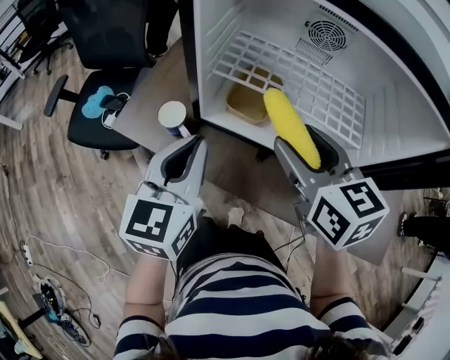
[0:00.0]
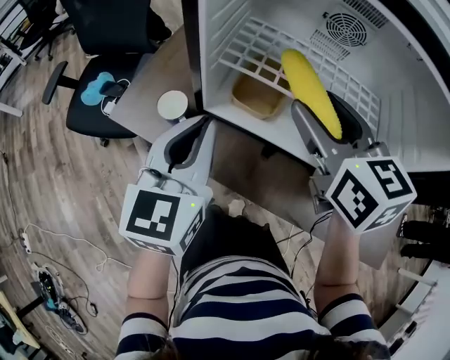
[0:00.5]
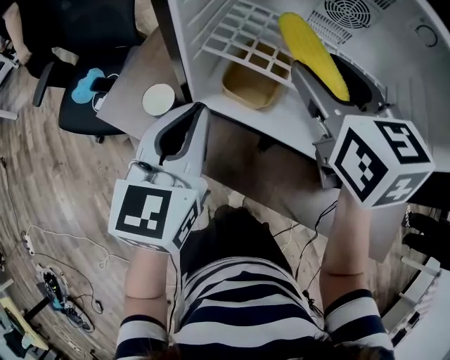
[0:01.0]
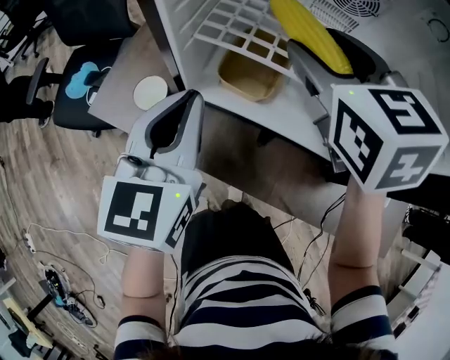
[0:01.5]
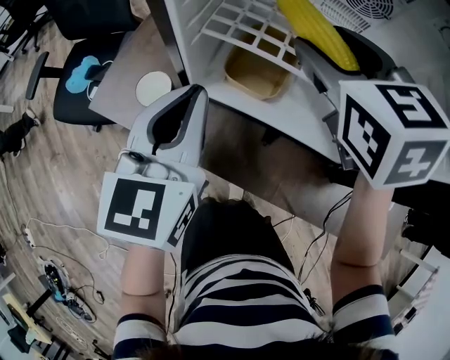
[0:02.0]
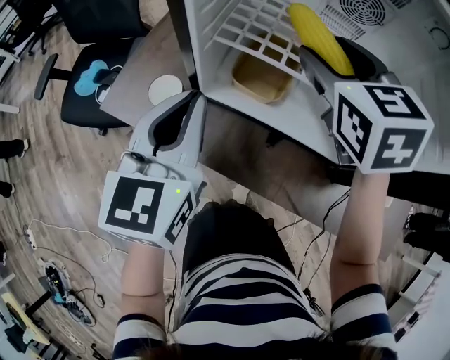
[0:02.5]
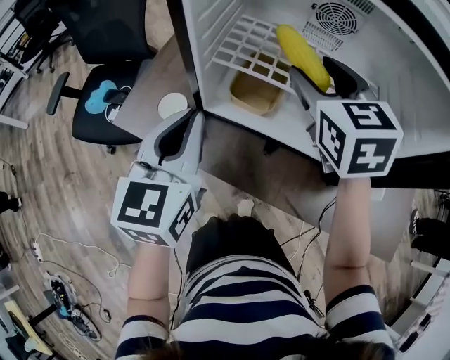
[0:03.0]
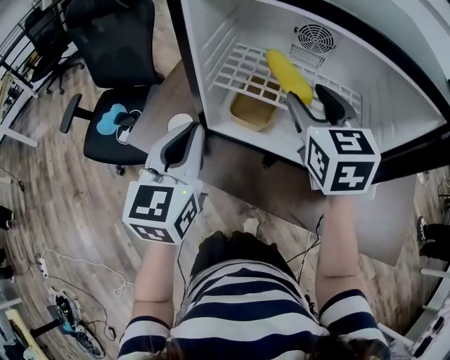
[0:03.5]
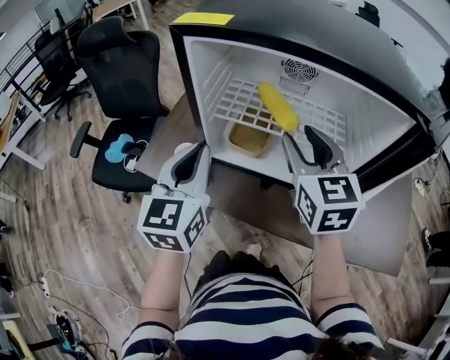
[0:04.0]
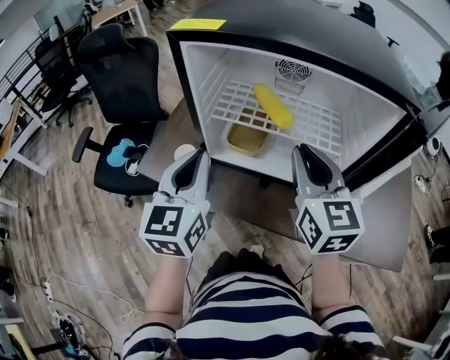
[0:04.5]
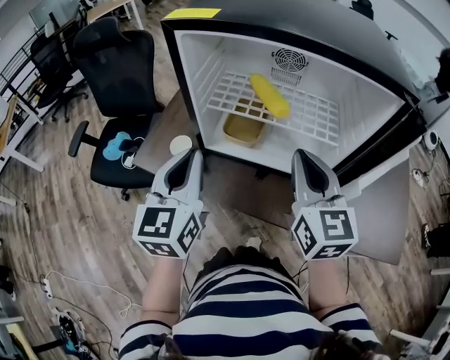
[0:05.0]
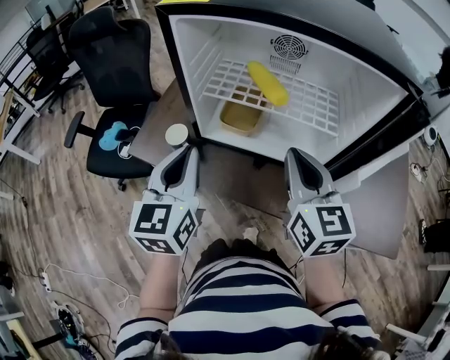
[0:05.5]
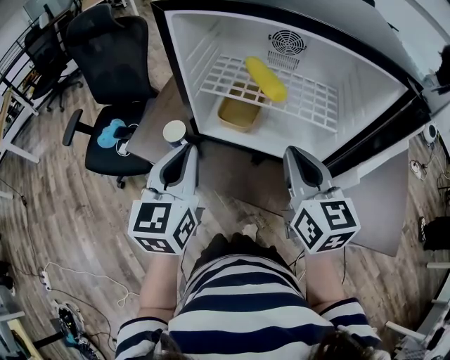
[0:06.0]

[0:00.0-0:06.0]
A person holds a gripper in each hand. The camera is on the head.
0:00.0 to 0:02.0: The left gripper shifts roughly 5 cm forward. The right gripper travels forward by about 15 cm, and turns by some 20 degrees.
0:02.0 to 0:04.0: The left gripper moves upward and backward, some 10 cm. Meanwhile the right gripper moves backward and upward, roughly 15 cm, and turns by approximately 20 degrees.
0:04.0 to 0:06.0: The right gripper moves backward, some 10 cm, and closes up; the left gripper ends up about 5 cm from where it was.

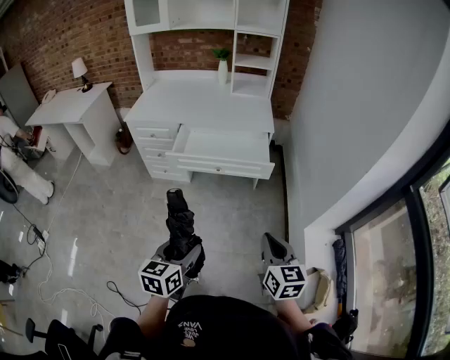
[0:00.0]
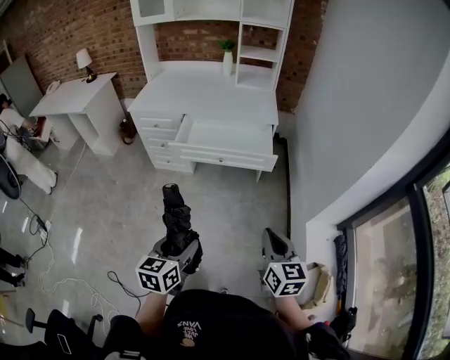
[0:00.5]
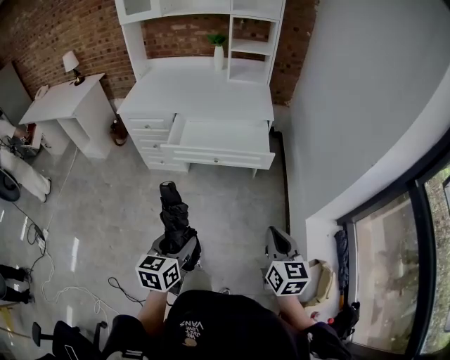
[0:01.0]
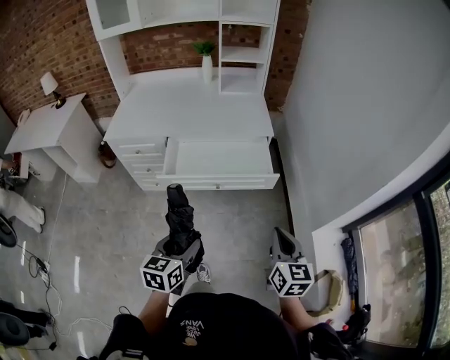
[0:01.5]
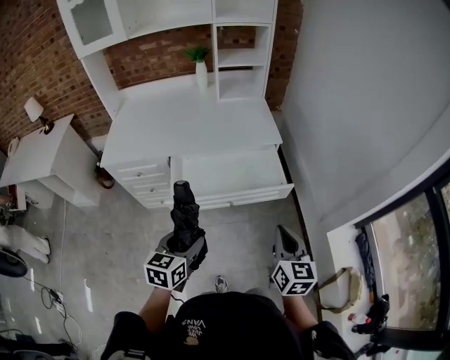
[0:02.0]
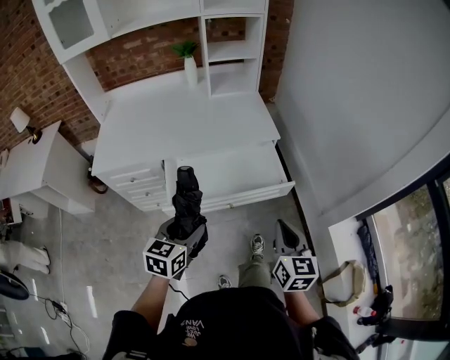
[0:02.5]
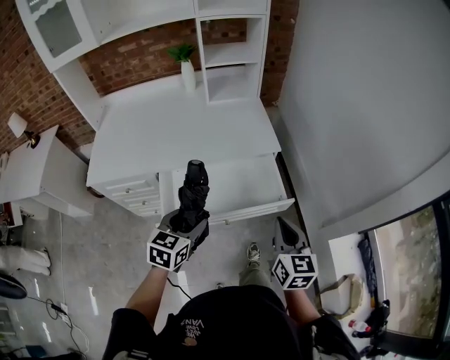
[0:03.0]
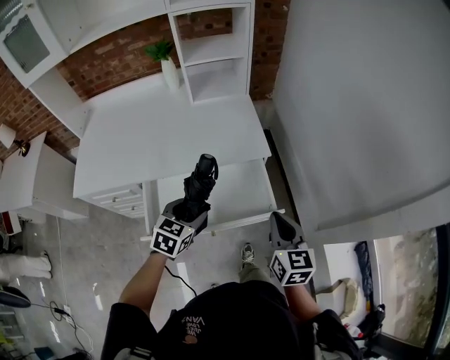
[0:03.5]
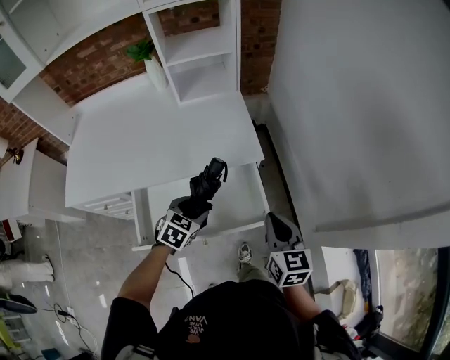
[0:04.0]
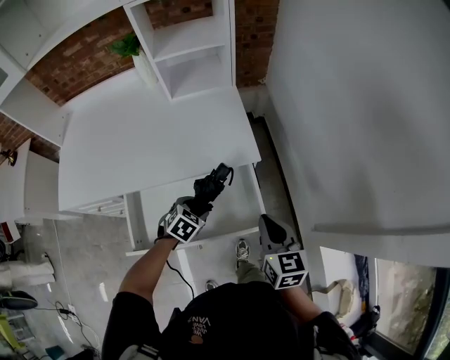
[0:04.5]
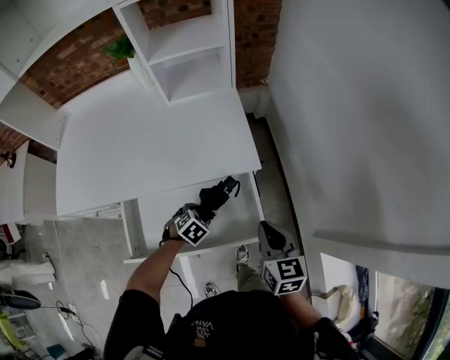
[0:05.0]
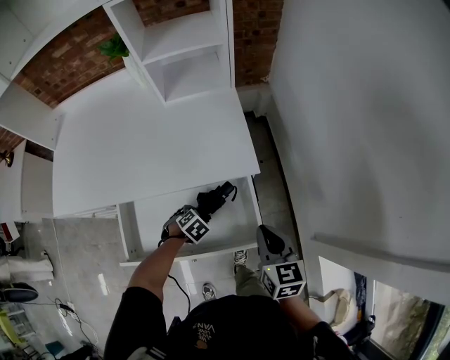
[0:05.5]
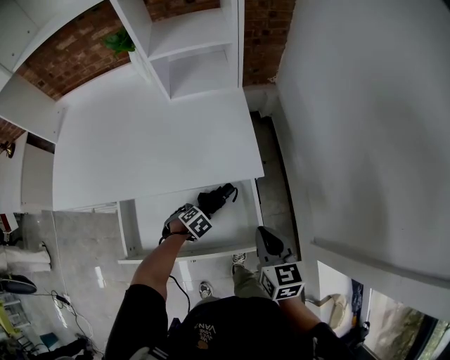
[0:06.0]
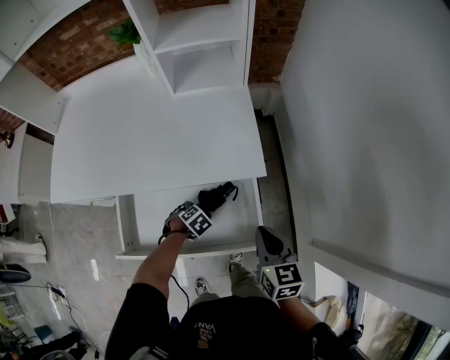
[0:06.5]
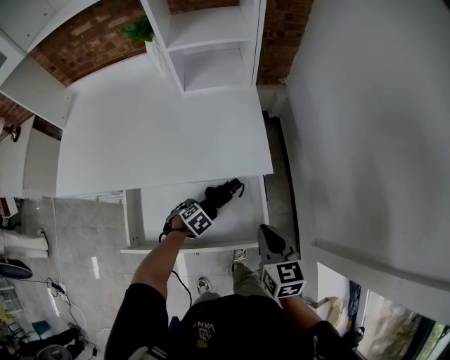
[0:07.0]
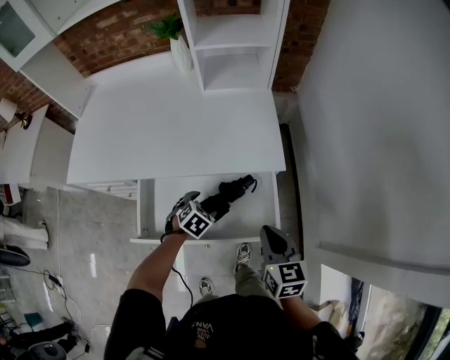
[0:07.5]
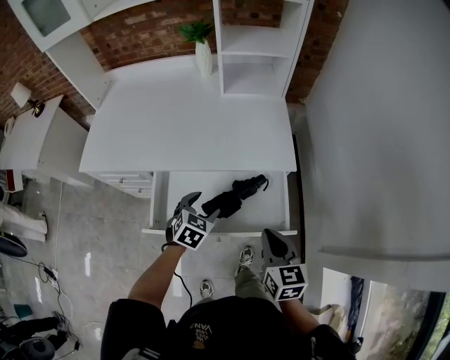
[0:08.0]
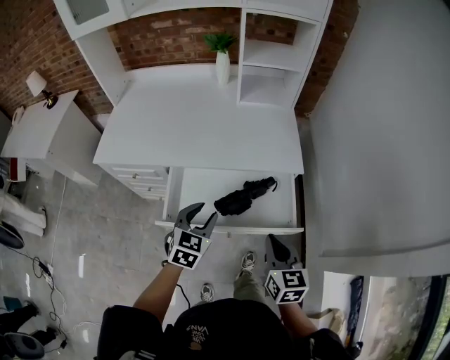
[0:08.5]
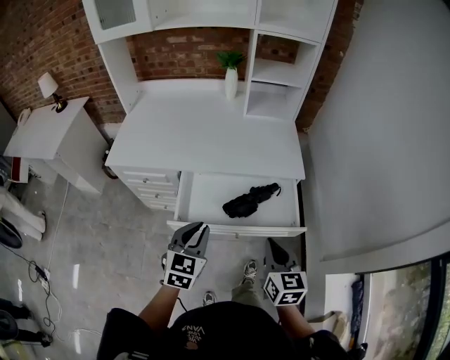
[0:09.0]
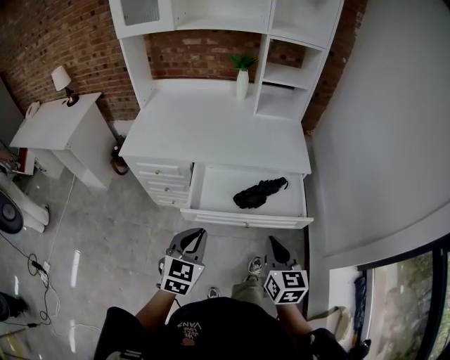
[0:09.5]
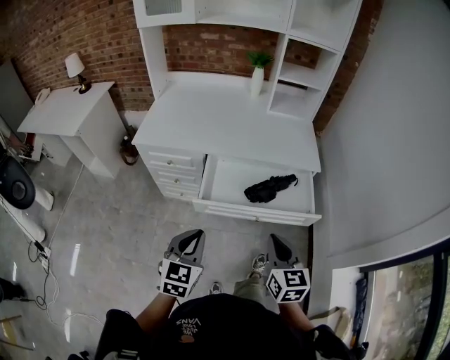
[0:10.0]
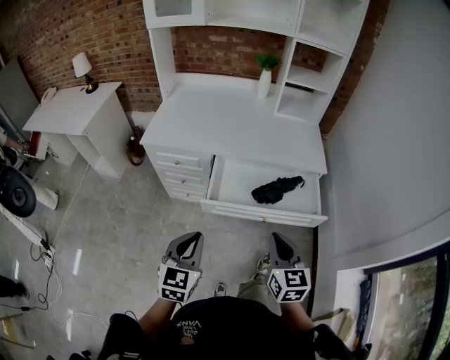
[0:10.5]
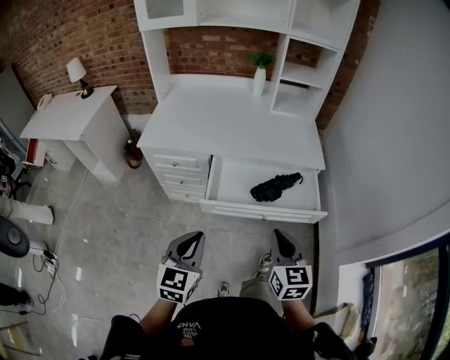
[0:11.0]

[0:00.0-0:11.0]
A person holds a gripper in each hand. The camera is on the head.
0:00.0 to 0:02.0: The grippers both shift forward and to the left by some 30 cm.
0:02.0 to 0:03.5: Both grippers travel together forward, about 25 cm. The left gripper changes its angle by approximately 20 degrees.
0:03.5 to 0:05.5: The left gripper goes approximately 25 cm downward, and angles its fingers downward, by approximately 40 degrees, while the right gripper shifts by roughly 15 cm.
0:05.5 to 0:07.5: The right gripper ends up roughly 10 cm from where it was. The left gripper moves upward, some 5 cm.
0:07.5 to 0:09.0: The left gripper travels upward, backward and to the left by roughly 35 cm, tips its fingers upward by roughly 40 degrees, and closes. The right gripper shifts some 20 cm backward, to the left and upward.
0:09.0 to 0:11.0: The right gripper travels to the left and backward by some 15 cm. Meanwhile the left gripper travels backward and to the left by approximately 20 cm.

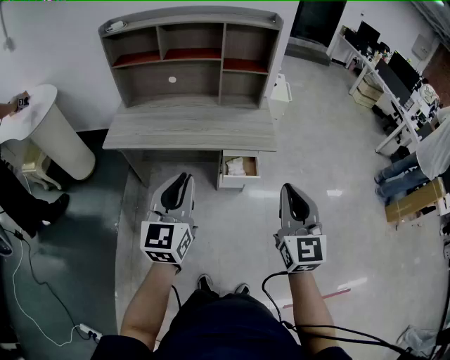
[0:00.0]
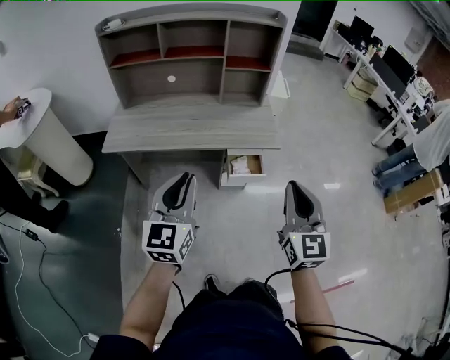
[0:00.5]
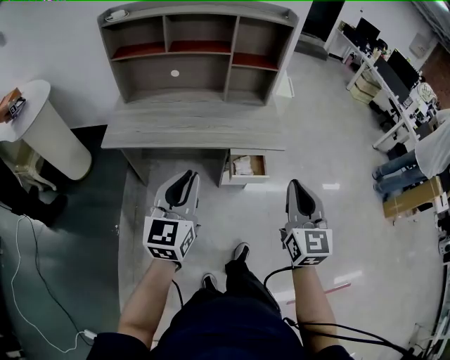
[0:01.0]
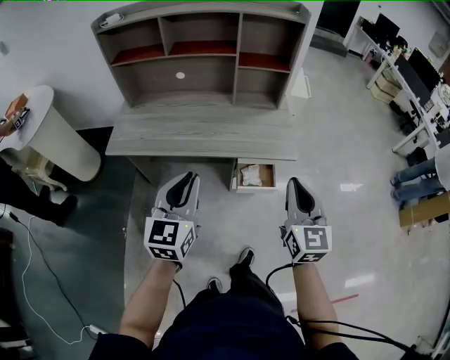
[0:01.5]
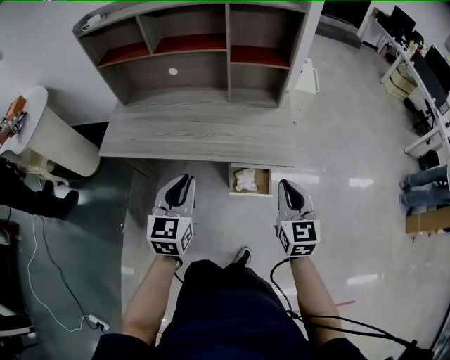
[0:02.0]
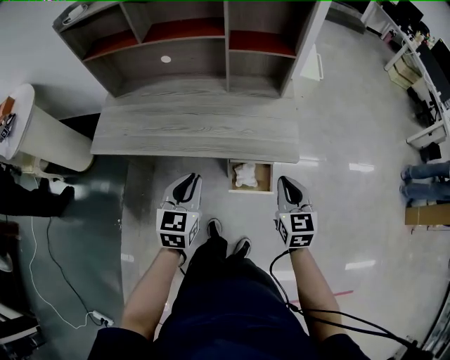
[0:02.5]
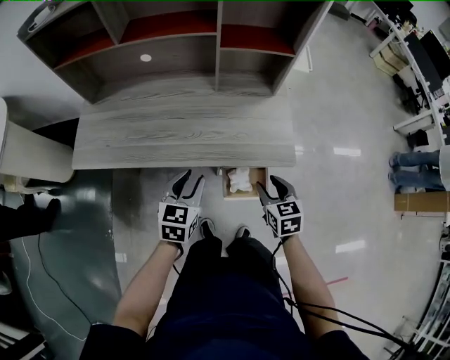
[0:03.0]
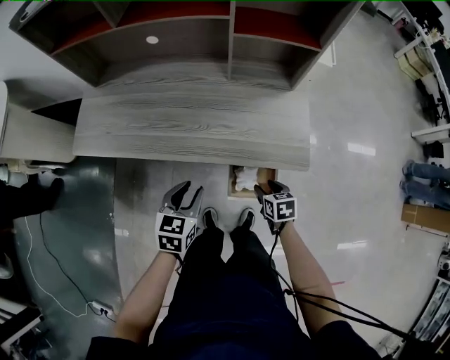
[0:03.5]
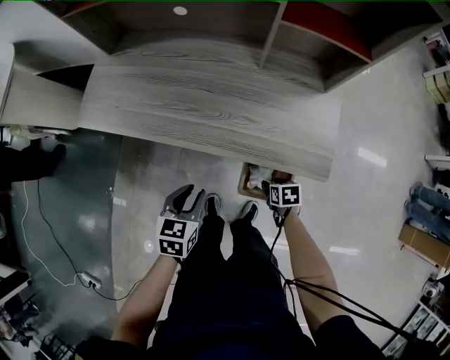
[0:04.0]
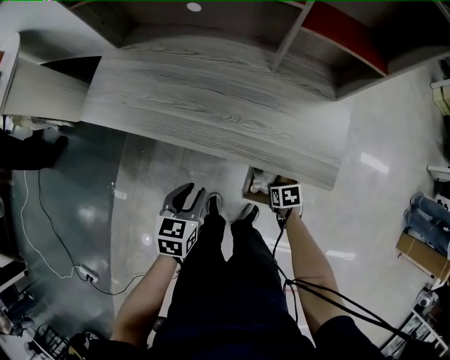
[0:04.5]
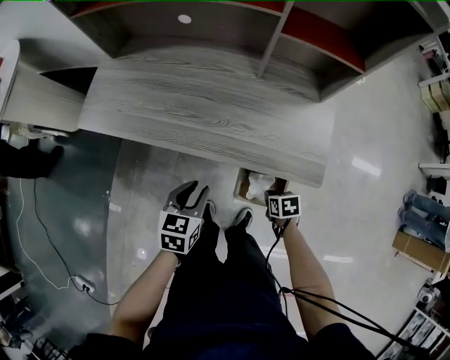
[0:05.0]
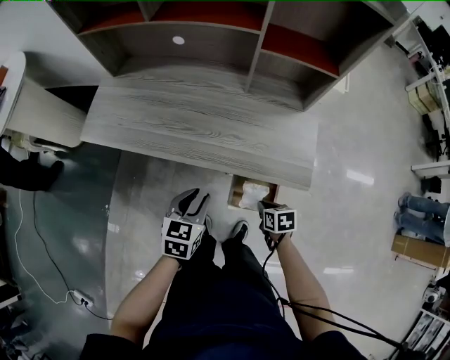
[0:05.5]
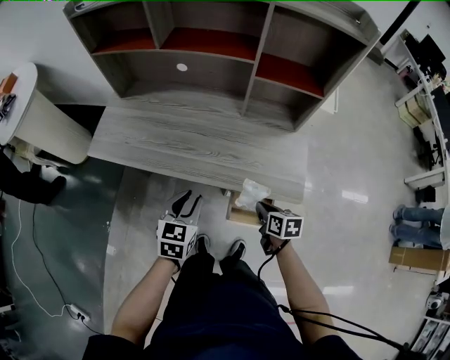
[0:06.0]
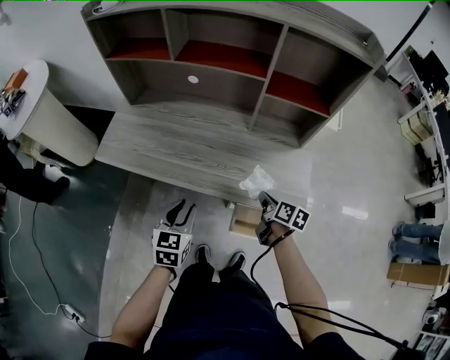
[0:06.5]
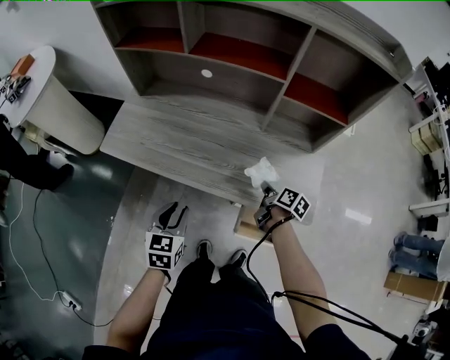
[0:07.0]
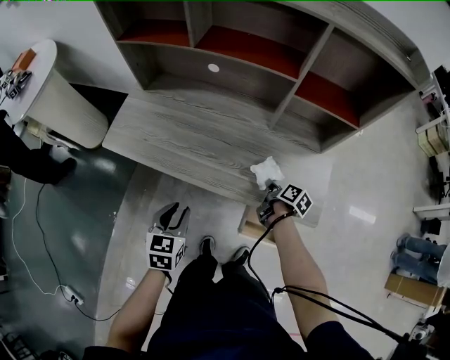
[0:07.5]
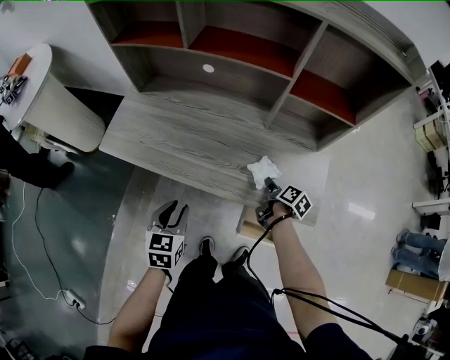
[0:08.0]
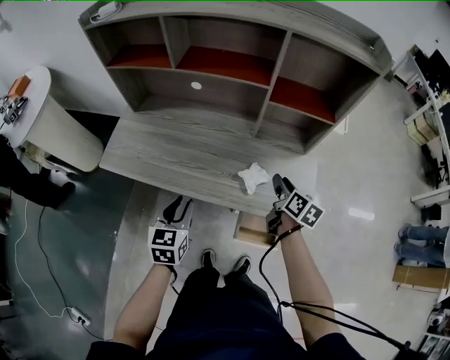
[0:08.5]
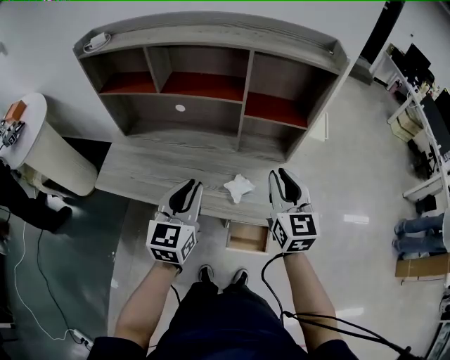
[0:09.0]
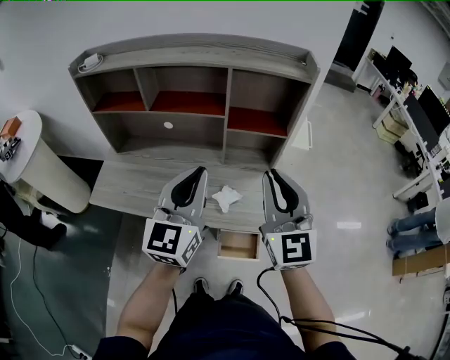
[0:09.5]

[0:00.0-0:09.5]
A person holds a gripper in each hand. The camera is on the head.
0:00.0 to 0:02.0: Both grippers move forward and downward, approximately 25 cm.
0:02.0 to 0:04.0: The left gripper travels downward by approximately 25 cm, and rotates some 30 degrees; the right gripper heads downward, covering approximately 40 cm, angles its fingers downward, by some 50 degrees, and opens its fingers.
0:04.0 to 0:05.5: The right gripper is displaced upward by some 5 cm, and closes up. Meanwhile the left gripper changes place by roughly 5 cm.
0:05.5 to 0:07.5: The right gripper is displaced forward by approximately 20 cm, and rotates around the line of its fingers by about 40 degrees, clockwise from behind. Meanwhile the left gripper moves to the left, roughly 10 cm.
0:07.5 to 0:09.5: The left gripper is displaced upward and to the right by about 40 cm, angles its fingers upward, by approximately 50 degrees, and closes its fingers; the right gripper shifts roughly 50 cm upward, rotates around the line of its fingers by roughly 80 degrees, counterclockwise from behind, and opens, then closes again.
